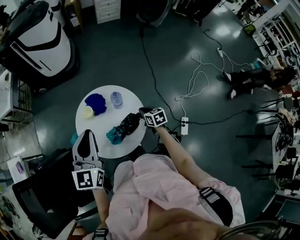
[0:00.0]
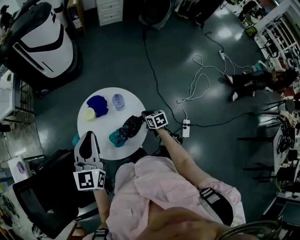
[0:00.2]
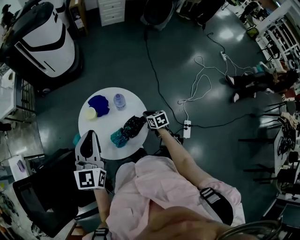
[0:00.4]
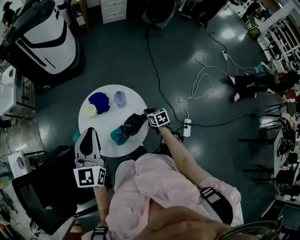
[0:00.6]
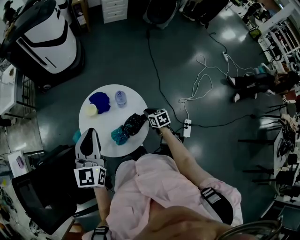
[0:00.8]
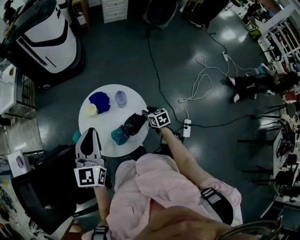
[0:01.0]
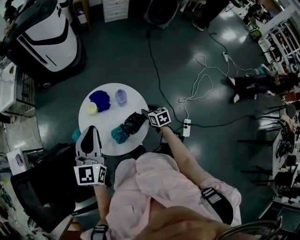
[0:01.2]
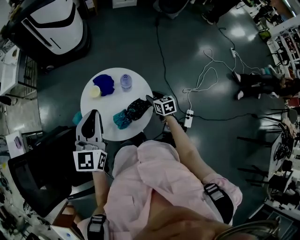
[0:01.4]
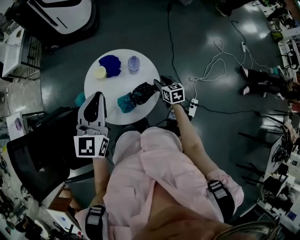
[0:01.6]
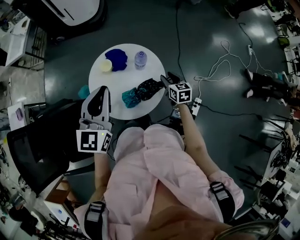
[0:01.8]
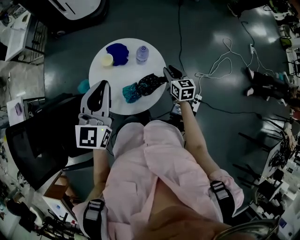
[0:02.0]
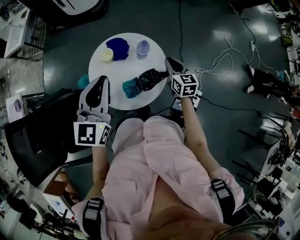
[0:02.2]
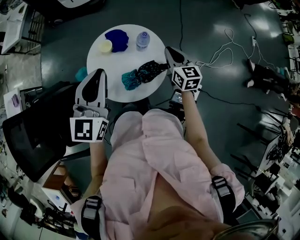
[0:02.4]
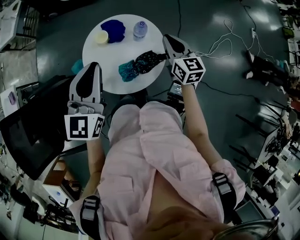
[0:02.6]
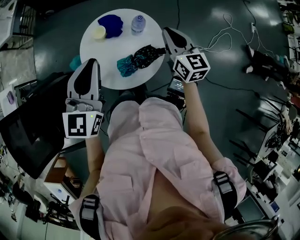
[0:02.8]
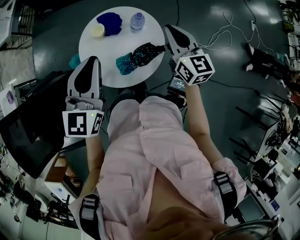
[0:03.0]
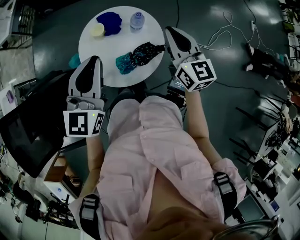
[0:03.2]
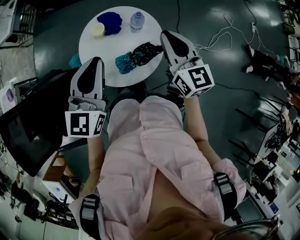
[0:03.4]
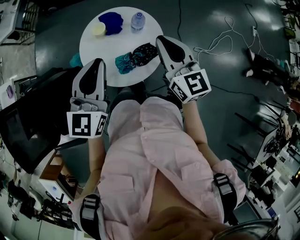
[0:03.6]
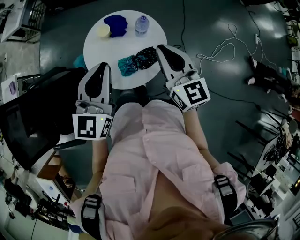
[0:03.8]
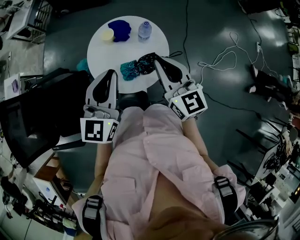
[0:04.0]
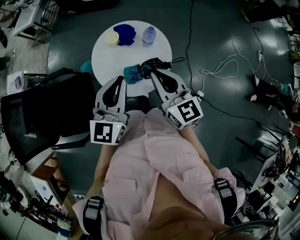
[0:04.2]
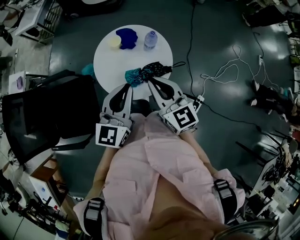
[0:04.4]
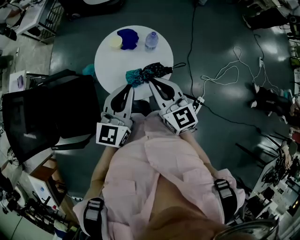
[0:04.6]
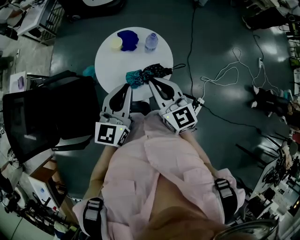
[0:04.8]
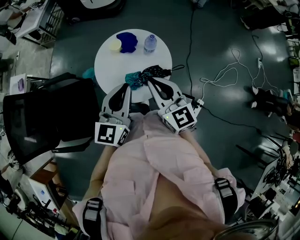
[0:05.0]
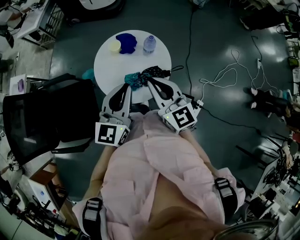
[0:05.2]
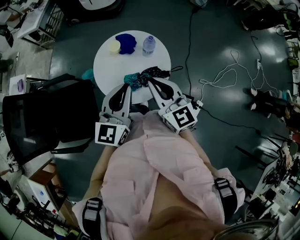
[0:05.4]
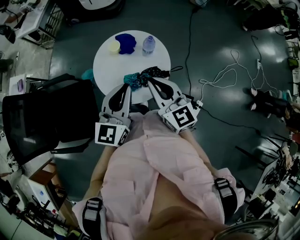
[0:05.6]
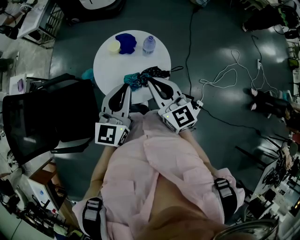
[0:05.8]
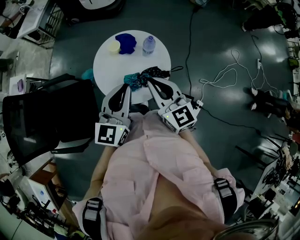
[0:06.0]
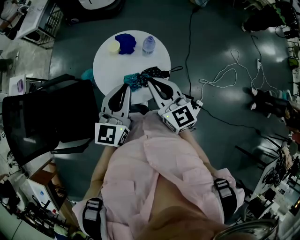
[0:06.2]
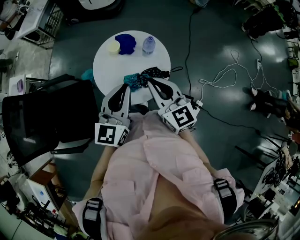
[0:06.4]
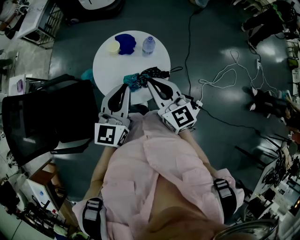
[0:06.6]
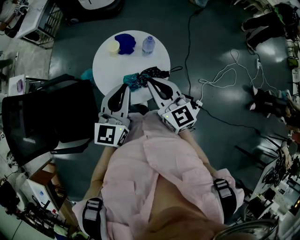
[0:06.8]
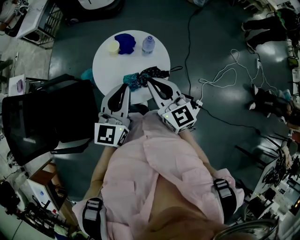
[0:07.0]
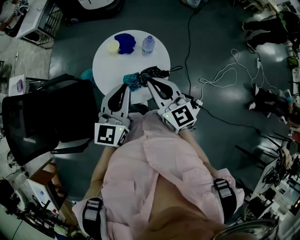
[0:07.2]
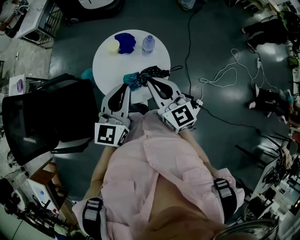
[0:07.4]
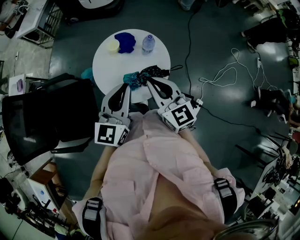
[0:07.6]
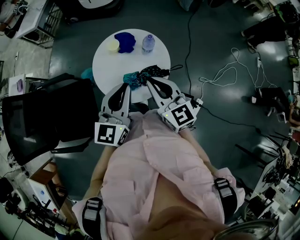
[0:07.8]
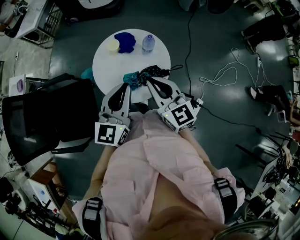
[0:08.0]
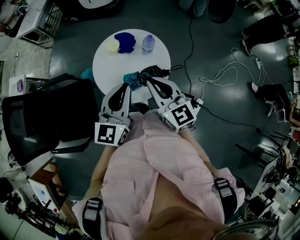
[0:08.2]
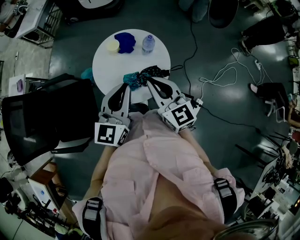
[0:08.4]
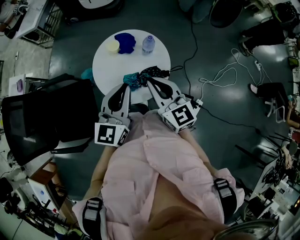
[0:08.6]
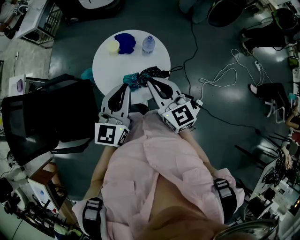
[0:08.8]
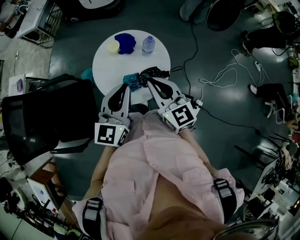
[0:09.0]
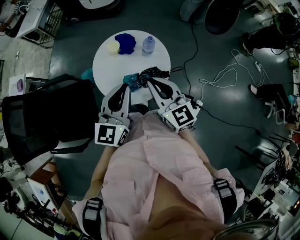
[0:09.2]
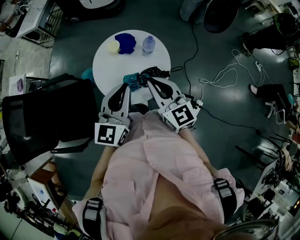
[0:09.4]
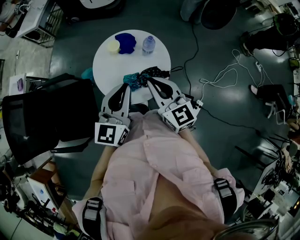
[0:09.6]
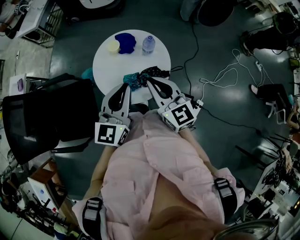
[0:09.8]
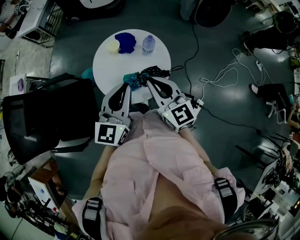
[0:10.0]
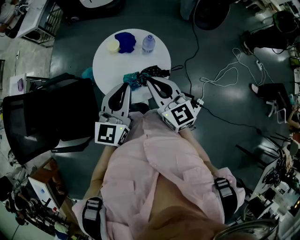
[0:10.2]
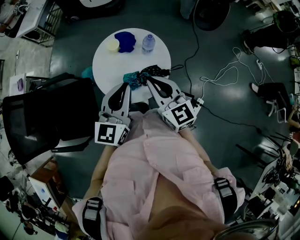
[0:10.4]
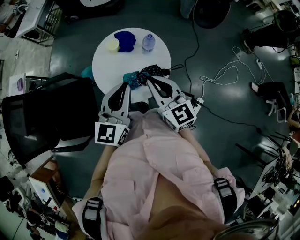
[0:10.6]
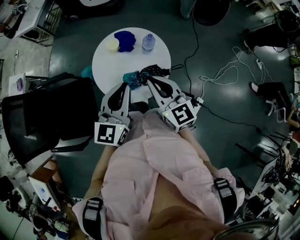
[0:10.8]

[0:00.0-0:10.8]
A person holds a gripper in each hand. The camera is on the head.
0:00.0 to 0:01.6: The right gripper opens its fingers.
0:01.6 to 0:03.0: The right gripper heads upward, covering approximately 25 cm, swivels about 30 degrees, and closes its fingers.
0:03.0 to 0:04.6: The left gripper goes approximately 10 cm backward and to the right; the right gripper shifts about 15 cm backward and to the left.
0:04.6 to 0:06.2: The grippers move only a little.
0:06.2 to 0:10.8: The two grippers keep their place.

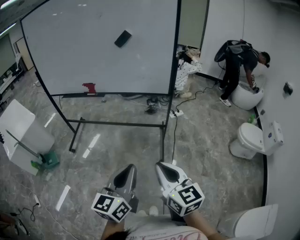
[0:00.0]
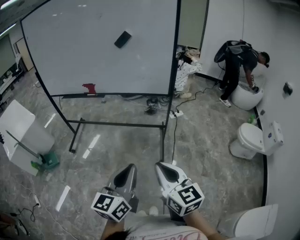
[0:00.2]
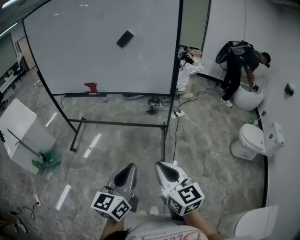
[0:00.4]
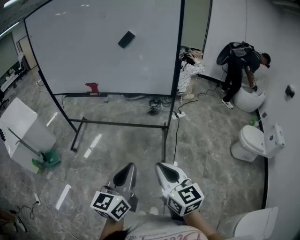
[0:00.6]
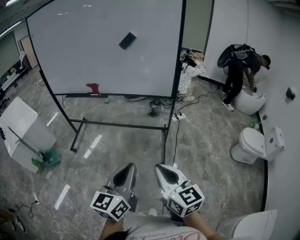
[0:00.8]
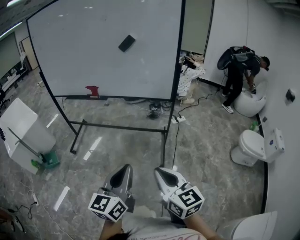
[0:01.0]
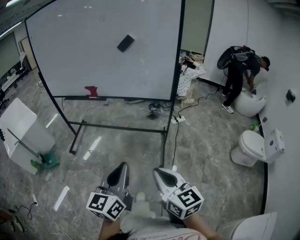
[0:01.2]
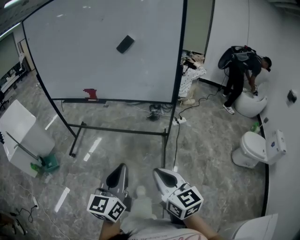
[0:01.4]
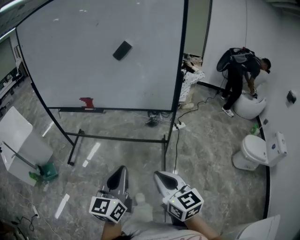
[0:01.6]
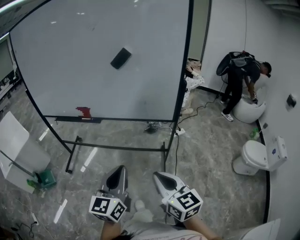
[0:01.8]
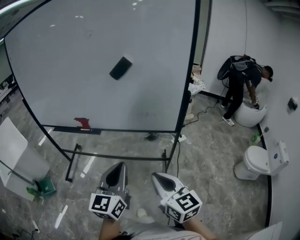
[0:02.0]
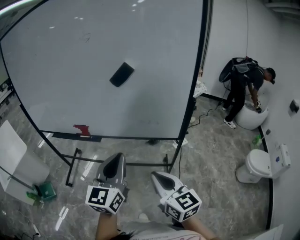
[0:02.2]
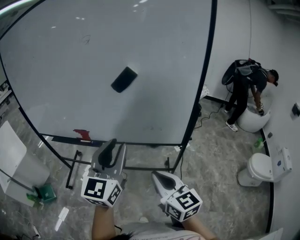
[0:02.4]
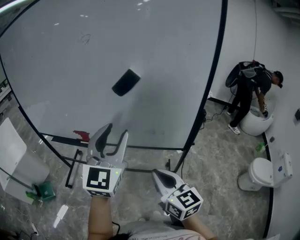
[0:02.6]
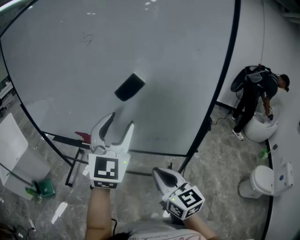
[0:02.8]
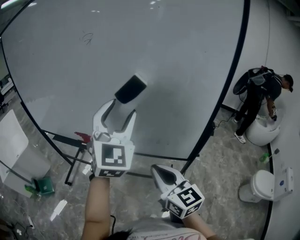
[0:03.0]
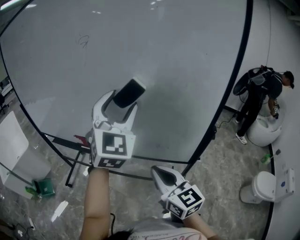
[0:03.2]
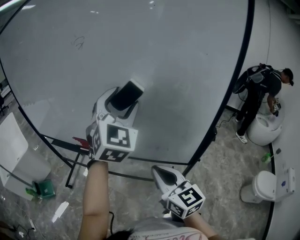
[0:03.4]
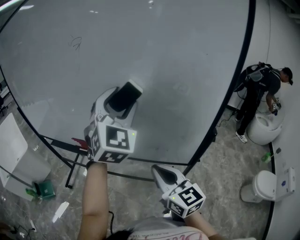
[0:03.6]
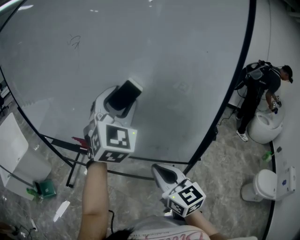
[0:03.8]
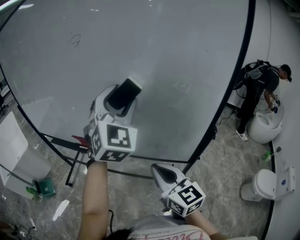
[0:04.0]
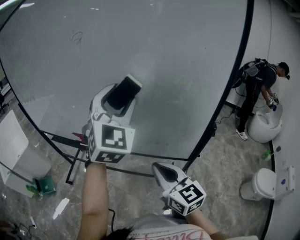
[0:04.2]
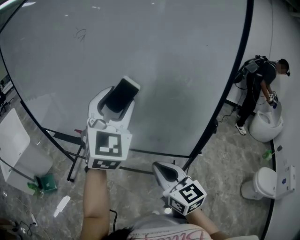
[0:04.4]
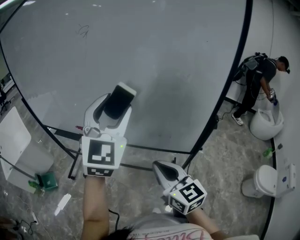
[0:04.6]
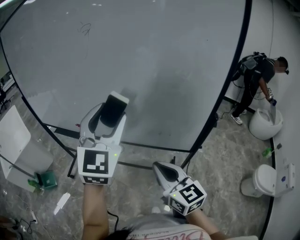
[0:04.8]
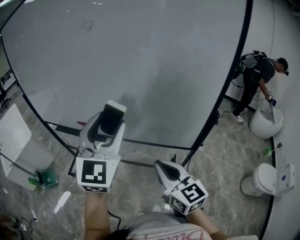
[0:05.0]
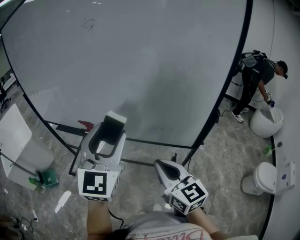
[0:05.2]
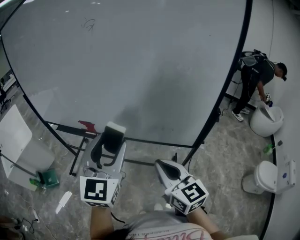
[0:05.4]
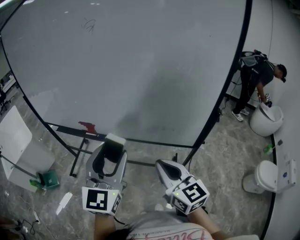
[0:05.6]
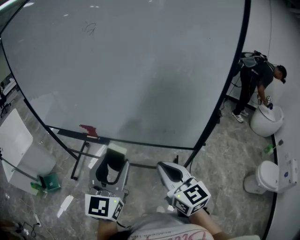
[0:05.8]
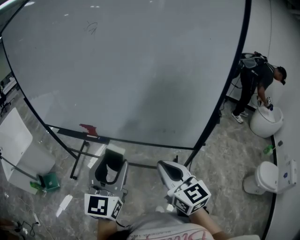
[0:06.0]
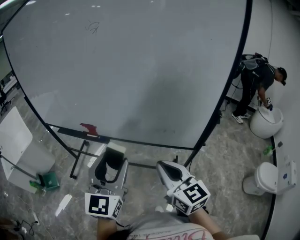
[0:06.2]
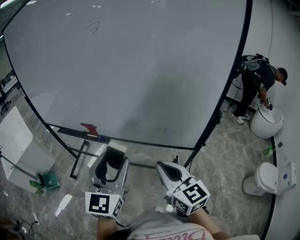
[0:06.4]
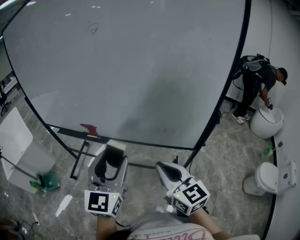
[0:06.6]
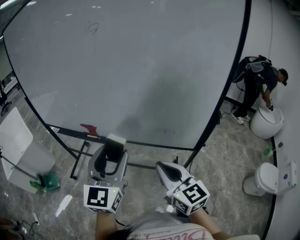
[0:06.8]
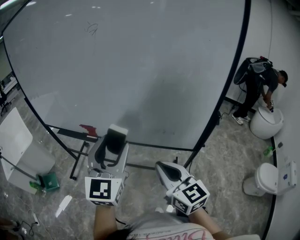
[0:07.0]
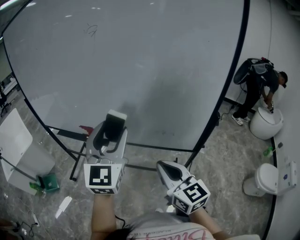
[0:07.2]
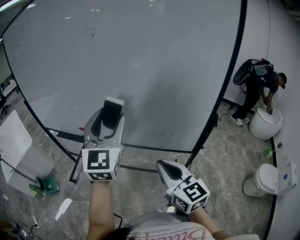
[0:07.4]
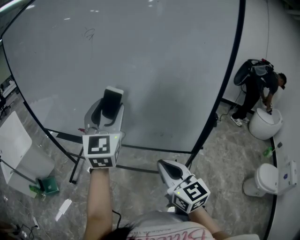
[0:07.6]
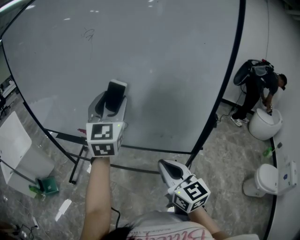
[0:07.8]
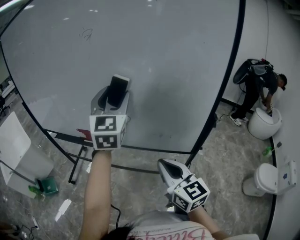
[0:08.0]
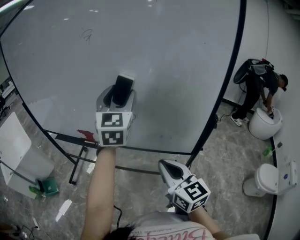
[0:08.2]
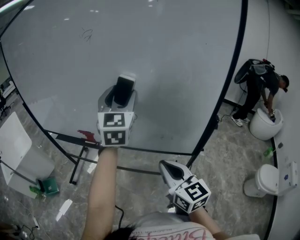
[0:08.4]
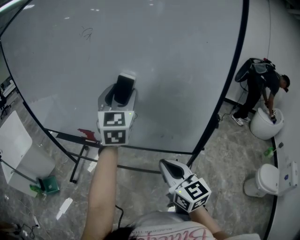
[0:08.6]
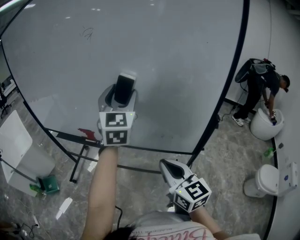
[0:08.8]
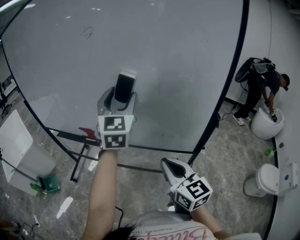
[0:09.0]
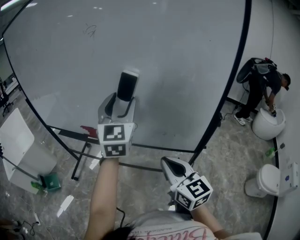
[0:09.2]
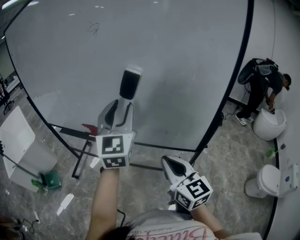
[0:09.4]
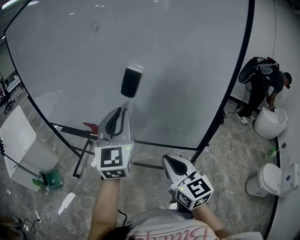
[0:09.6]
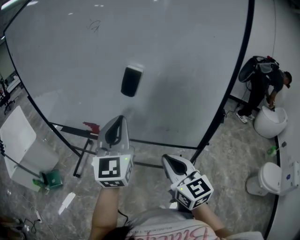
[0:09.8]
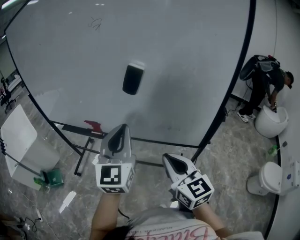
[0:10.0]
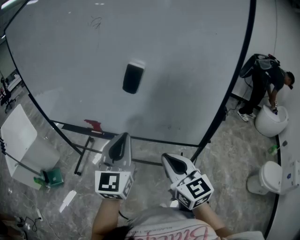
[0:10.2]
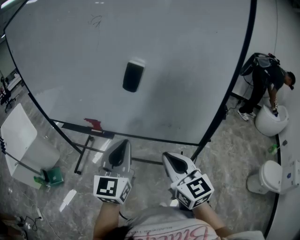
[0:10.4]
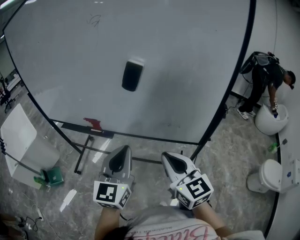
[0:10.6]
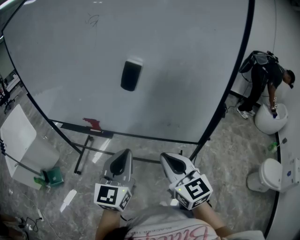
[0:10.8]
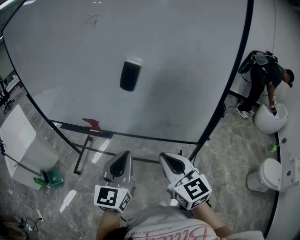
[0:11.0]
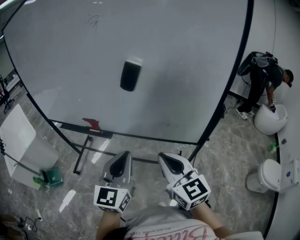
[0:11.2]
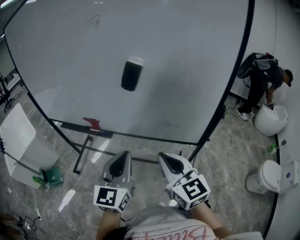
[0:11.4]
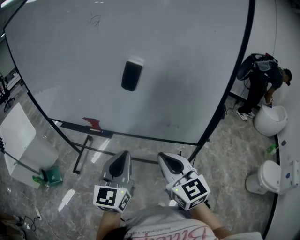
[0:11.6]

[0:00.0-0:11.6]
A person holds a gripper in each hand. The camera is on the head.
0:00.0 to 0:01.4: The left gripper moves forward, about 5 cm.
0:01.4 to 0:02.8: The right gripper is displaced forward by approximately 35 cm, while the left gripper goes about 40 cm forward and upward, rotates around the line of its fingers by approximately 40 degrees, clockwise from behind, and opens.
0:02.8 to 0:04.4: The left gripper heads forward, covering about 5 cm.
0:04.4 to 0:05.8: The left gripper moves downward, backward and to the left, about 20 cm, and swivels some 30 degrees.
0:05.8 to 0:07.2: The left gripper travels forward and upward by some 10 cm.
0:07.2 to 0:08.8: The left gripper travels forward and to the right by roughly 15 cm.
0:08.8 to 0:10.2: The left gripper goes approximately 20 cm backward and downward, and closes up.
0:10.2 to 0:11.6: The left gripper is displaced downward by about 5 cm.

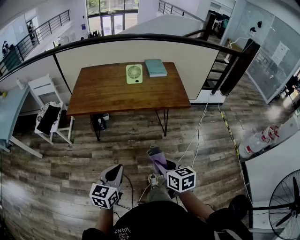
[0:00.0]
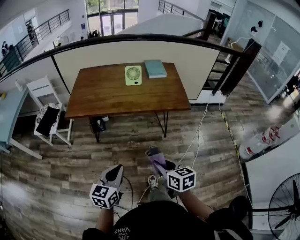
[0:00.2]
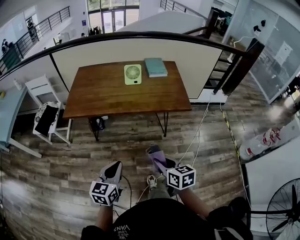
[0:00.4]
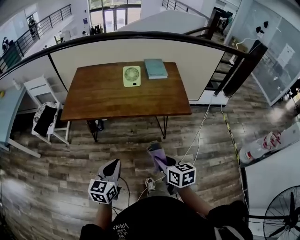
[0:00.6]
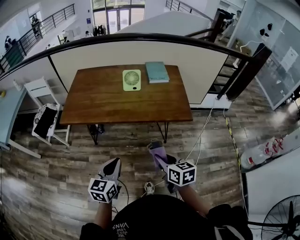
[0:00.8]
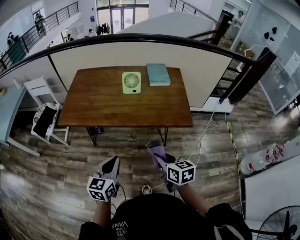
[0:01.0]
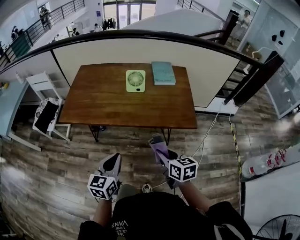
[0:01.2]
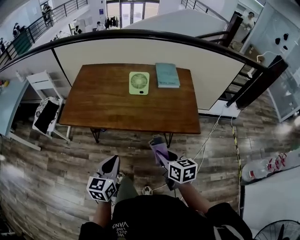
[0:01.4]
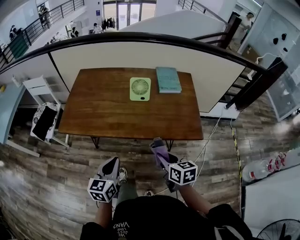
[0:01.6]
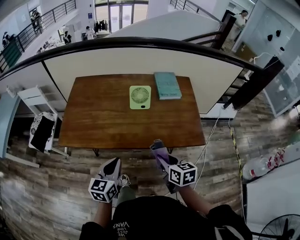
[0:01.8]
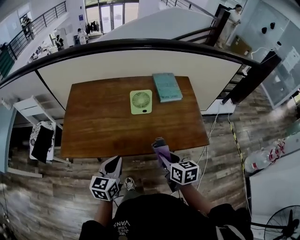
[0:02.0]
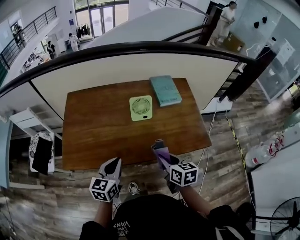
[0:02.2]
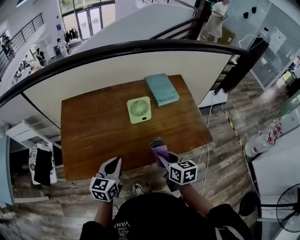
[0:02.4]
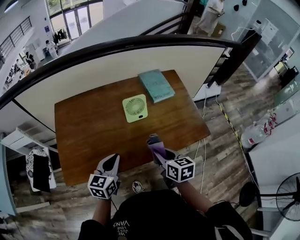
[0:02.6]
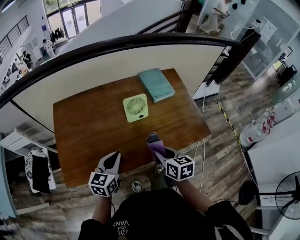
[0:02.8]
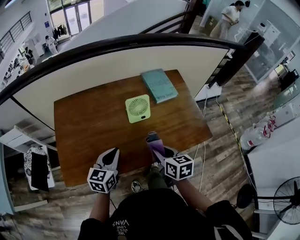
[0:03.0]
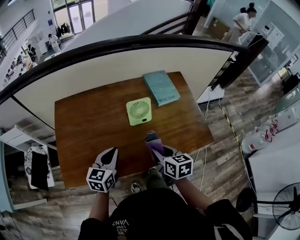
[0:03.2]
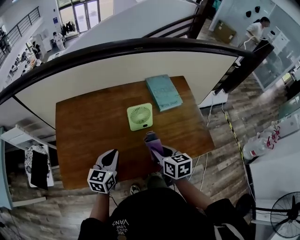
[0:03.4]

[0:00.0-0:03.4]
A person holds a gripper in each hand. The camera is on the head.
0:00.0 to 0:01.6: Both grippers travel together forward, approximately 30 cm.
0:01.6 to 0:03.4: The left gripper heads forward, covering approximately 30 cm, and changes its angle by approximately 20 degrees; the right gripper travels forward and to the left by approximately 25 cm.
